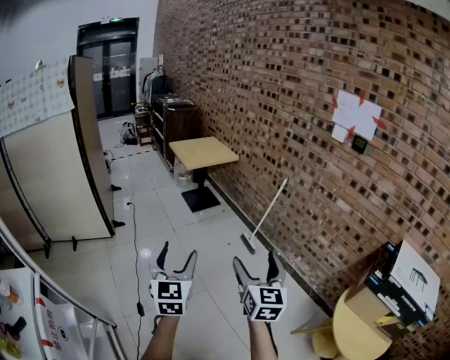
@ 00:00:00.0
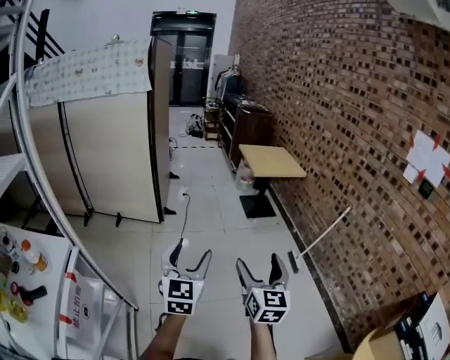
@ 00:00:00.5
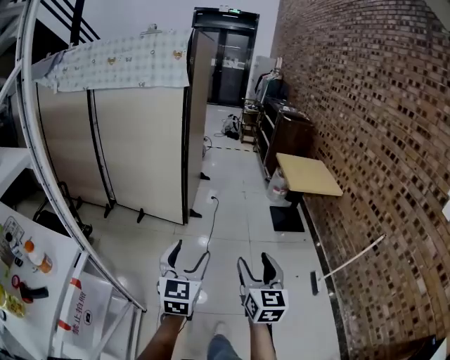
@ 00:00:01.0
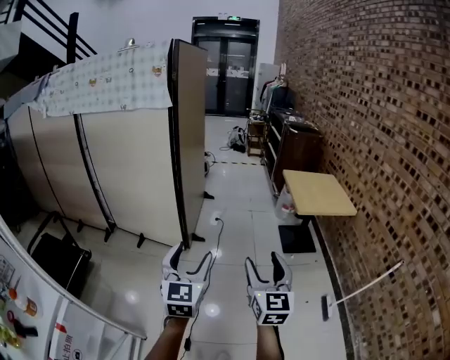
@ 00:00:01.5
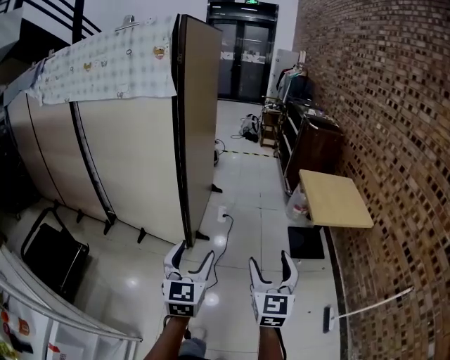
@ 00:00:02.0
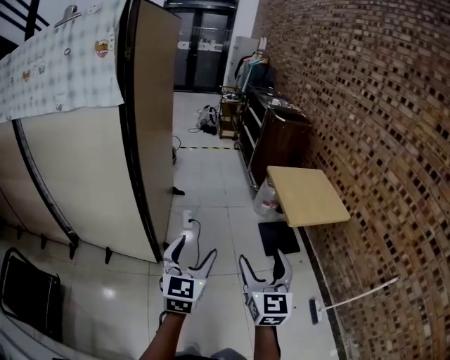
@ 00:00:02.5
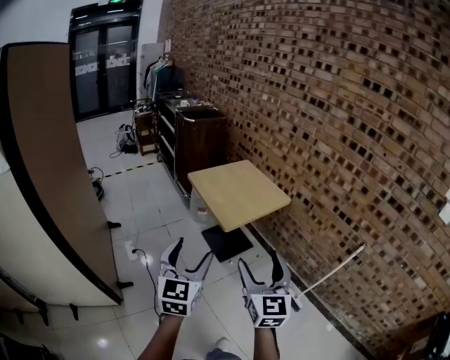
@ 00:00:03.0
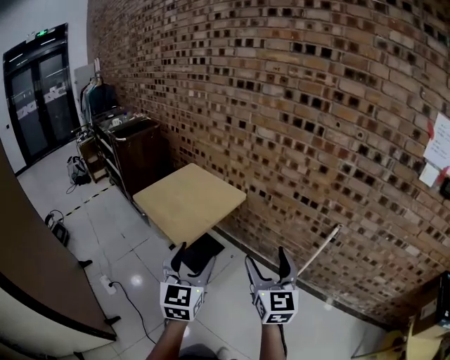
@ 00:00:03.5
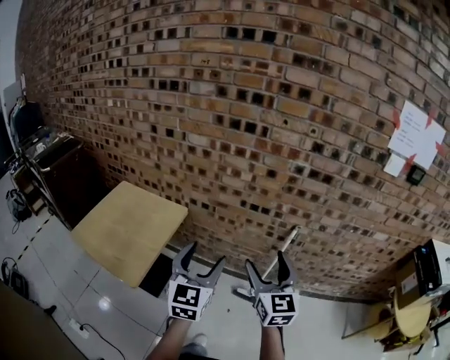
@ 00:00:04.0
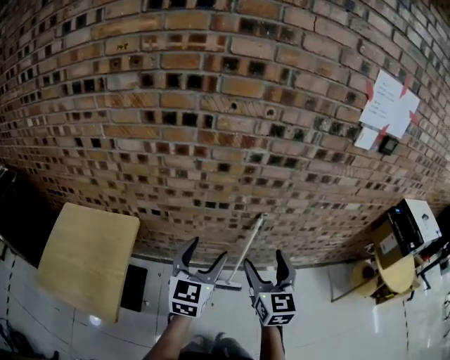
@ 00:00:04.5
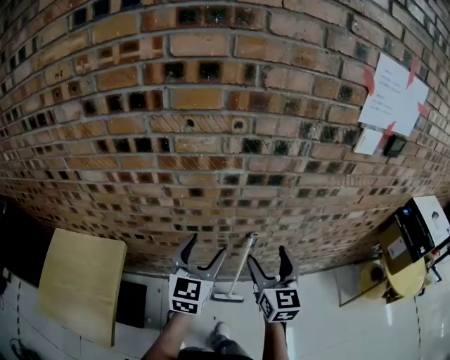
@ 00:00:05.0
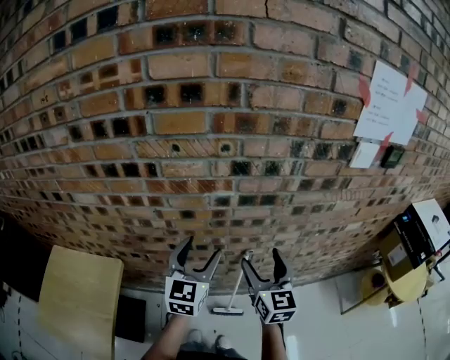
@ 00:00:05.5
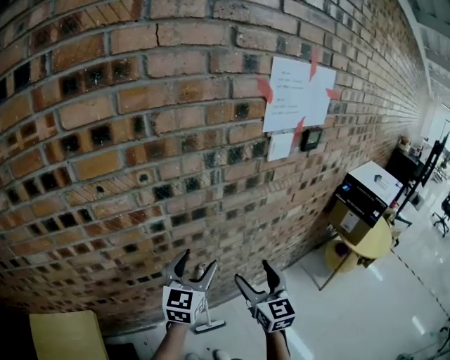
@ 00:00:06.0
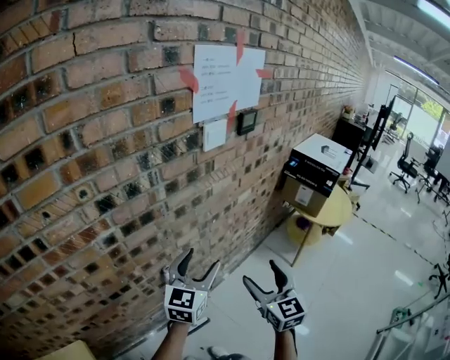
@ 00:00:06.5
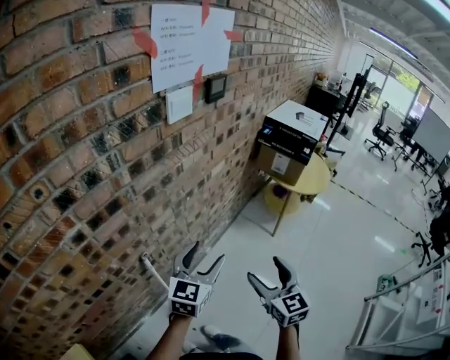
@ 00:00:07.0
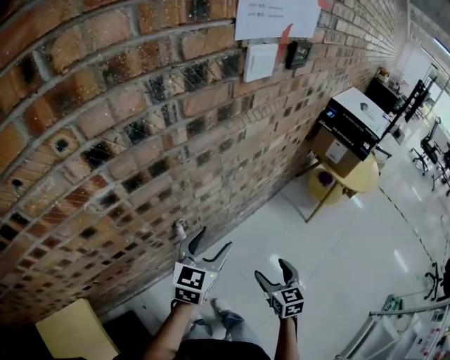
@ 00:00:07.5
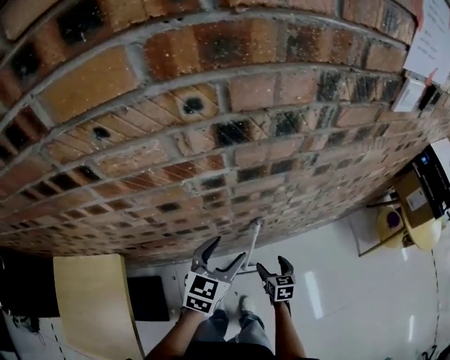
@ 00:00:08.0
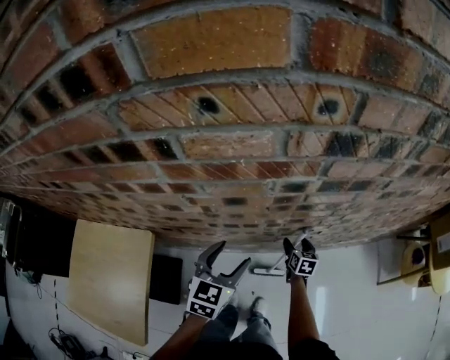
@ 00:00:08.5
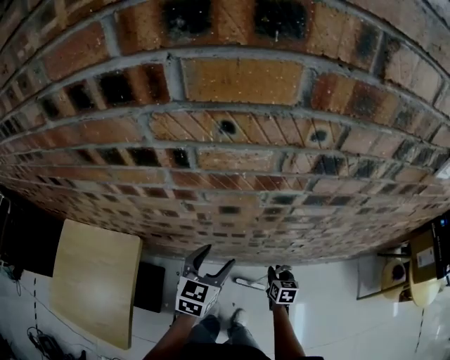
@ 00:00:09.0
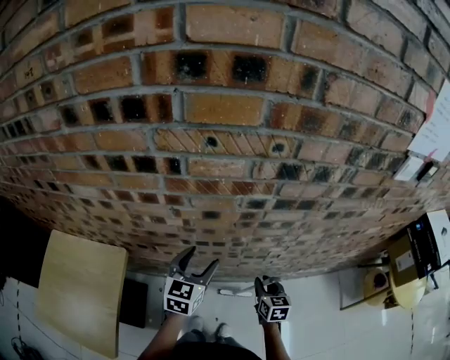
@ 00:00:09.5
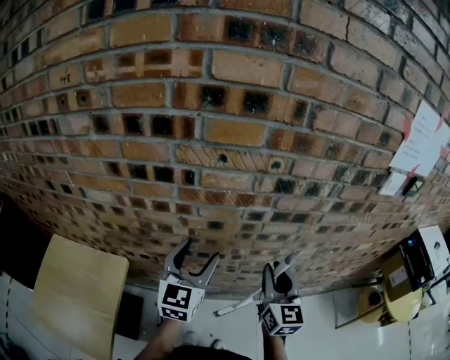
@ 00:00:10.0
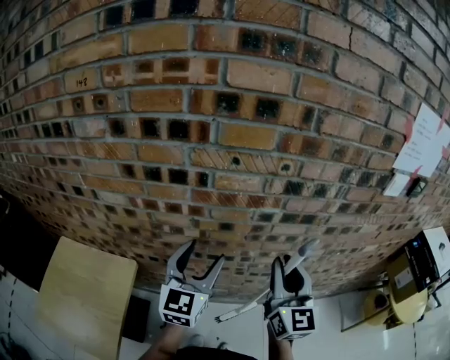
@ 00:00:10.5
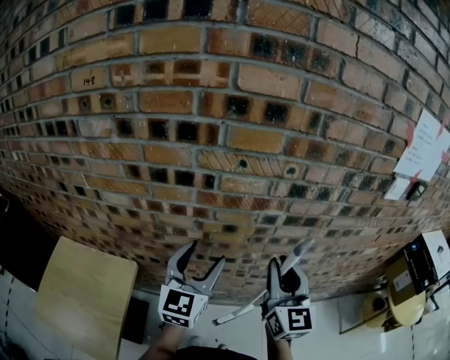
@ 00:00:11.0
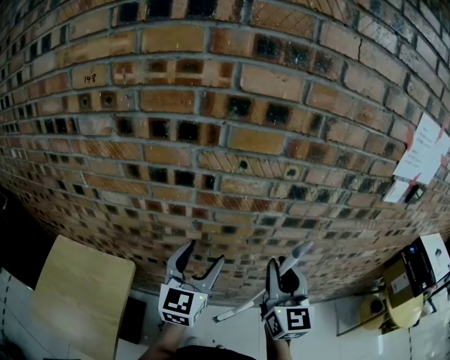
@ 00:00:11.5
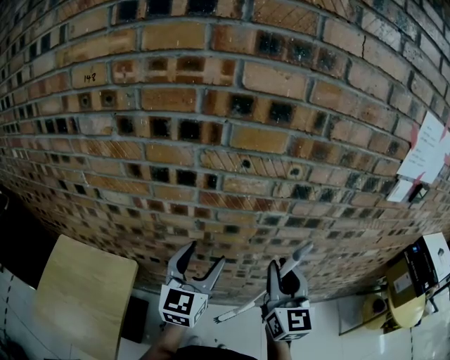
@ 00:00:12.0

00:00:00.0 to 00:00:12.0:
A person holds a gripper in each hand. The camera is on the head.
00:00:00.0 to 00:00:02.0: The pair of grippers is taken some 60 cm. The right gripper turns by about 30 degrees. The left gripper swivels some 30 degrees.
00:00:02.0 to 00:00:04.0: The pair of grippers is taken about 70 cm. The right gripper turns by roughly 70 degrees. Meanwhile the left gripper swivels about 80 degrees.
00:00:04.0 to 00:00:06.0: The left gripper moves roughly 40 cm, and changes its angle by about 40 degrees. Meanwhile the right gripper shifts by approximately 35 cm, and turns by roughly 30 degrees.
00:00:06.0 to 00:00:08.0: The right gripper travels downward by some 40 cm, and angles its fingers downward, by approximately 40 degrees. The left gripper goes roughly 20 cm downward, and rotates some 20 degrees.
00:00:08.0 to 00:00:10.0: The left gripper shifts roughly 25 cm upward and to the left, and swivels approximately 30 degrees. The right gripper moves upward, about 40 cm, tips its fingers upward by some 40 degrees, and closes its fingers.
00:00:10.0 to 00:00:12.0: The right gripper goes roughly 5 cm upward.

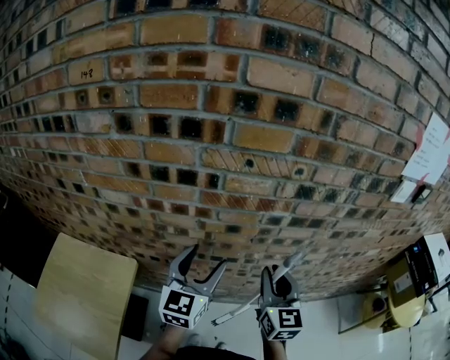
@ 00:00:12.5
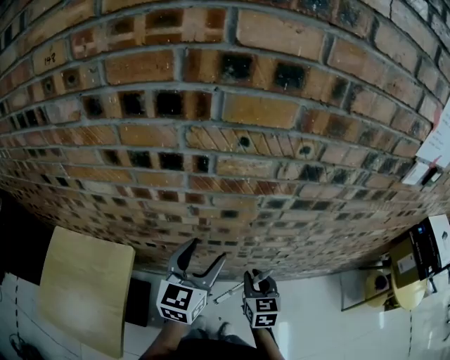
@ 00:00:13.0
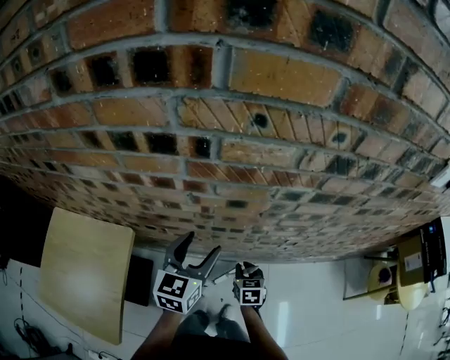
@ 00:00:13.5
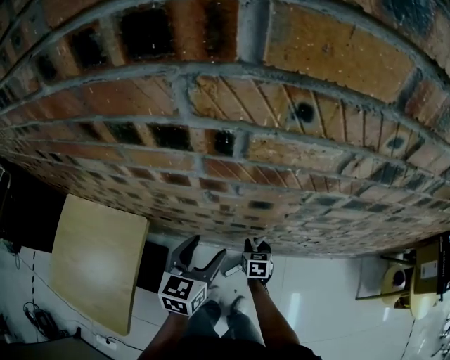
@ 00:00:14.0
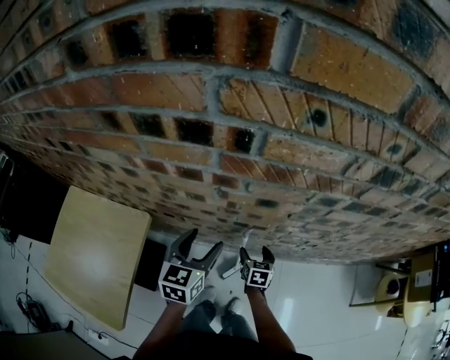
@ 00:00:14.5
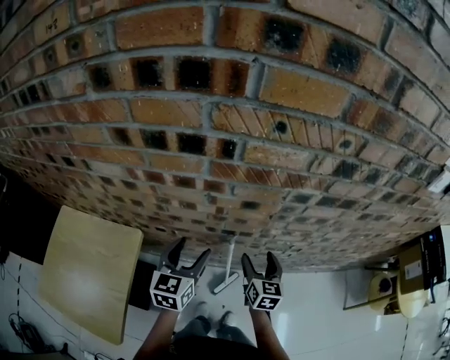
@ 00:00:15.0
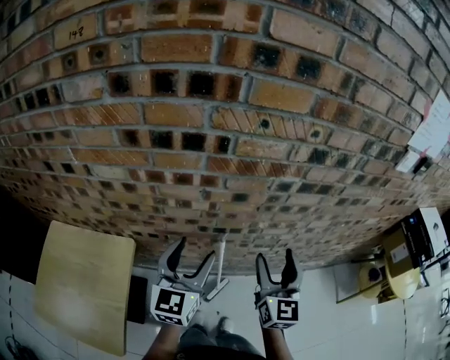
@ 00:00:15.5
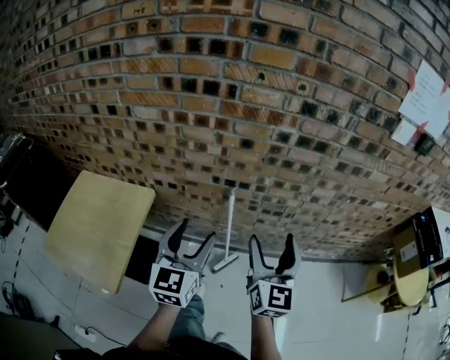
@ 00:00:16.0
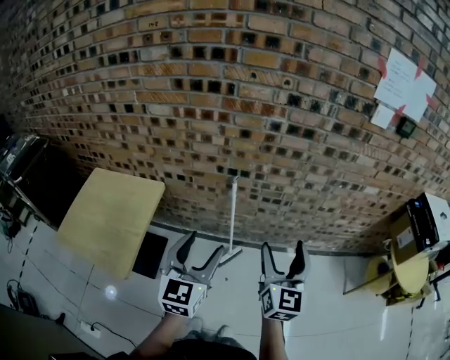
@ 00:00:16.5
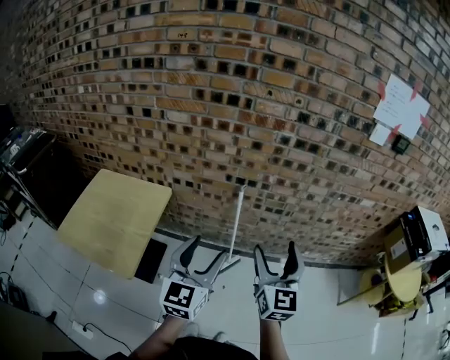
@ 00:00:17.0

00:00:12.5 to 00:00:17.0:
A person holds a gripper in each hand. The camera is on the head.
00:00:12.5 to 00:00:14.5: The right gripper shifts some 40 cm downward, tilts its fingers about 40 degrees downward, and opens, while the left gripper shifts some 20 cm downward, and swivels some 30 degrees.
00:00:14.5 to 00:00:17.0: The pair of grippers is taken backward, some 40 cm. The right gripper travels upward by roughly 40 cm, and angles its fingers upward, by roughly 50 degrees. The left gripper swivels about 30 degrees.

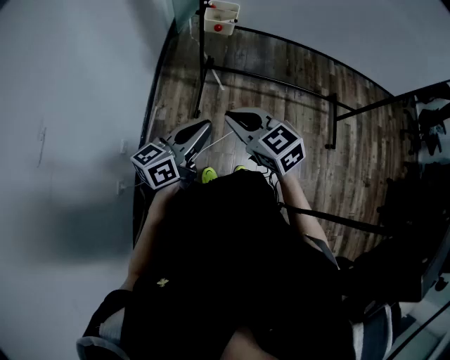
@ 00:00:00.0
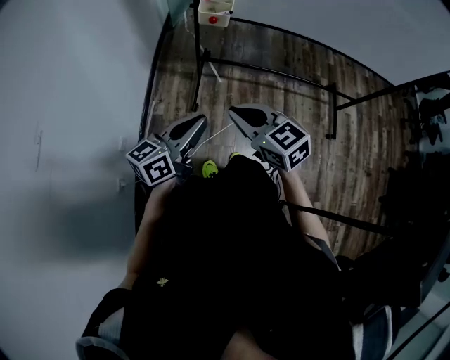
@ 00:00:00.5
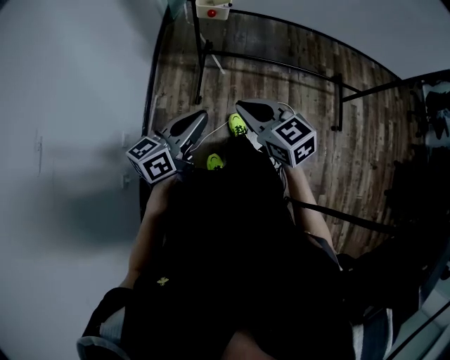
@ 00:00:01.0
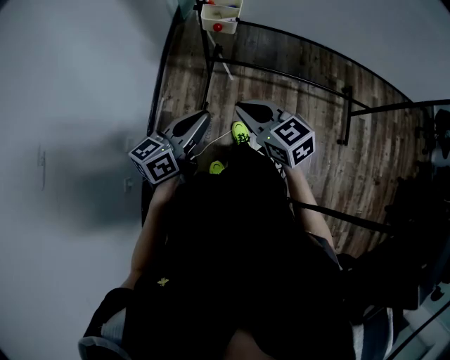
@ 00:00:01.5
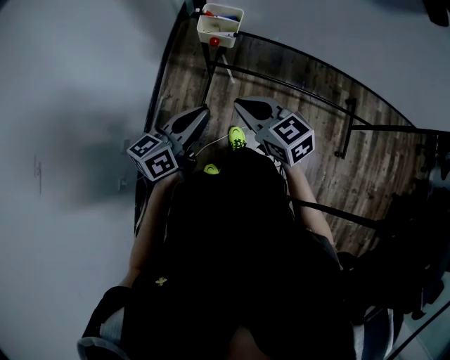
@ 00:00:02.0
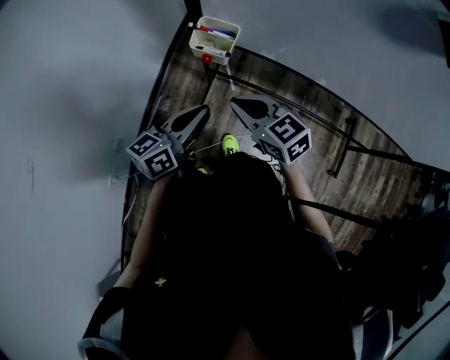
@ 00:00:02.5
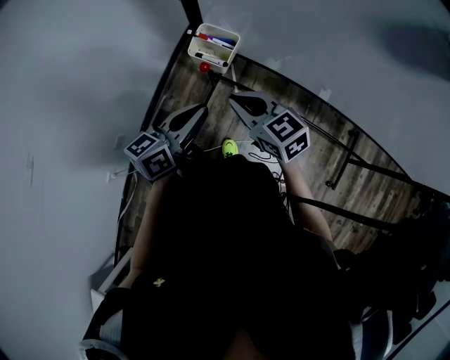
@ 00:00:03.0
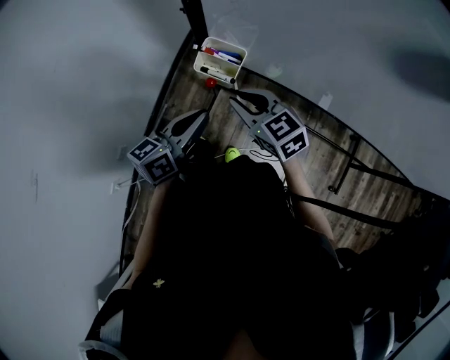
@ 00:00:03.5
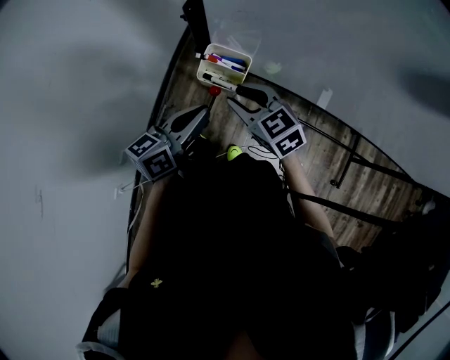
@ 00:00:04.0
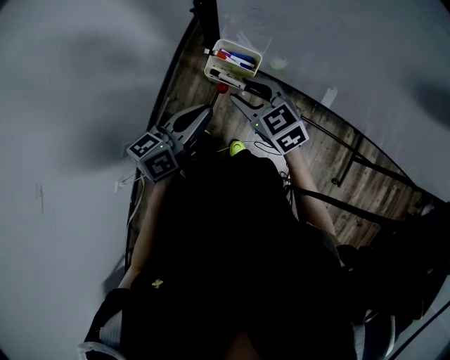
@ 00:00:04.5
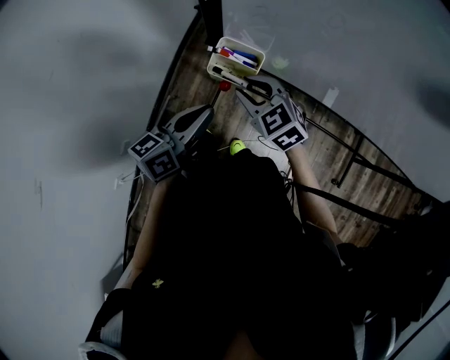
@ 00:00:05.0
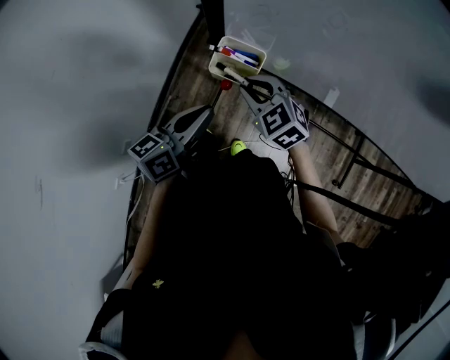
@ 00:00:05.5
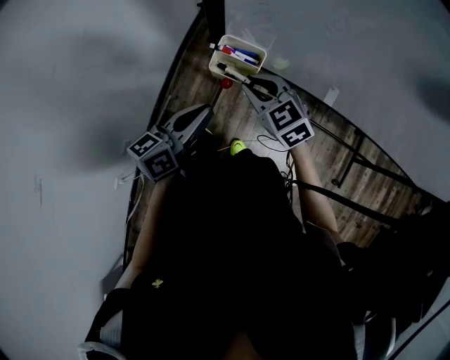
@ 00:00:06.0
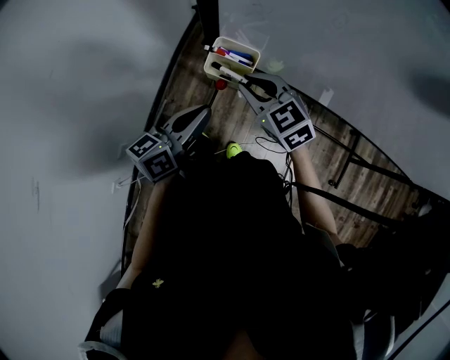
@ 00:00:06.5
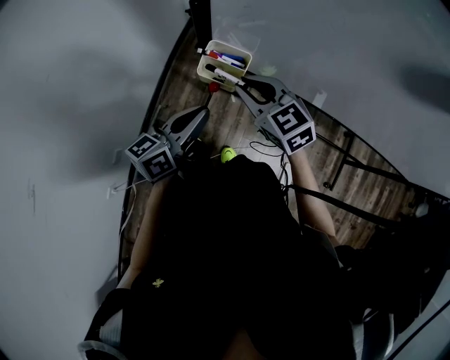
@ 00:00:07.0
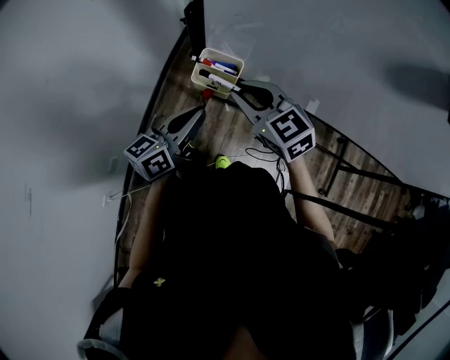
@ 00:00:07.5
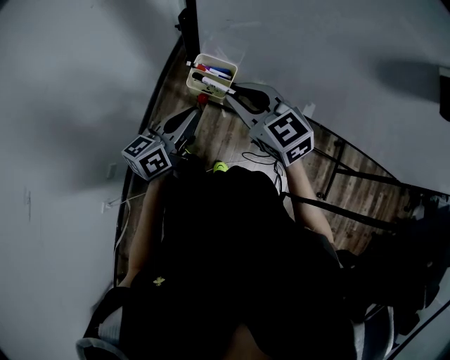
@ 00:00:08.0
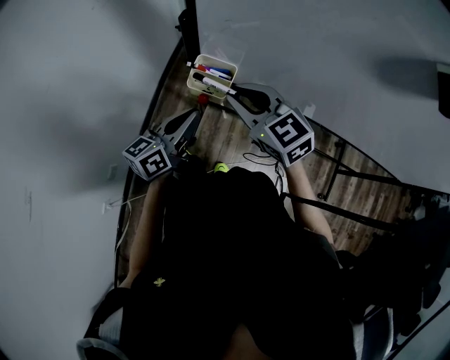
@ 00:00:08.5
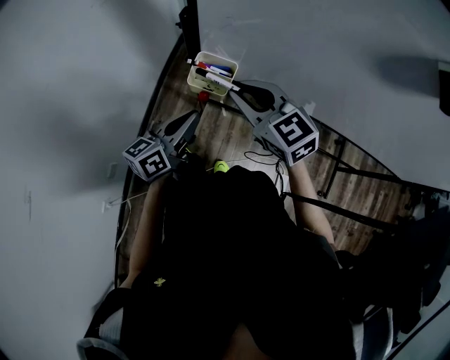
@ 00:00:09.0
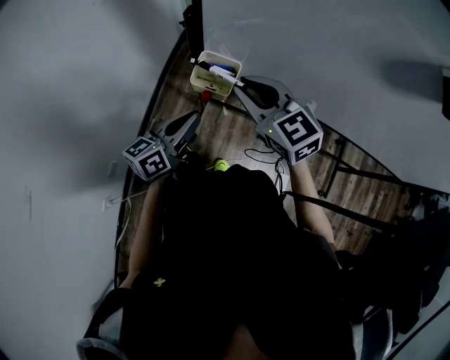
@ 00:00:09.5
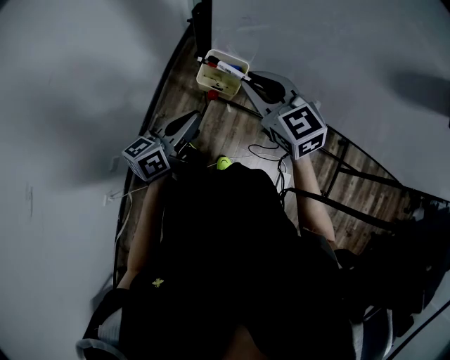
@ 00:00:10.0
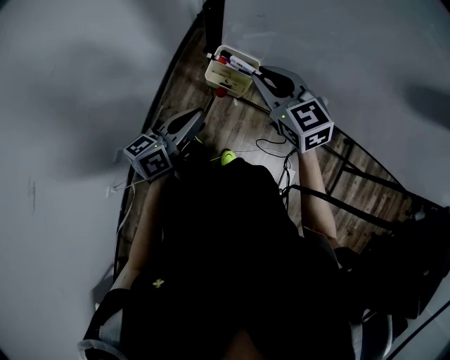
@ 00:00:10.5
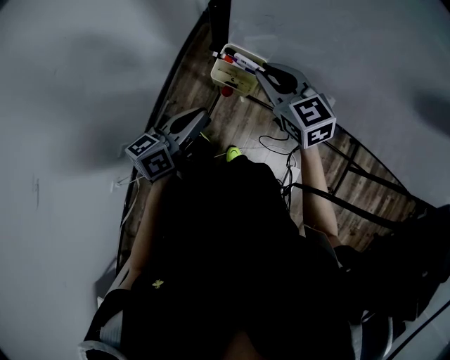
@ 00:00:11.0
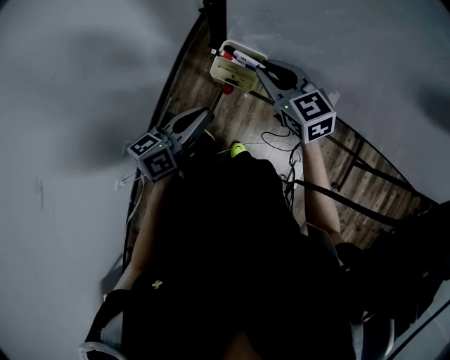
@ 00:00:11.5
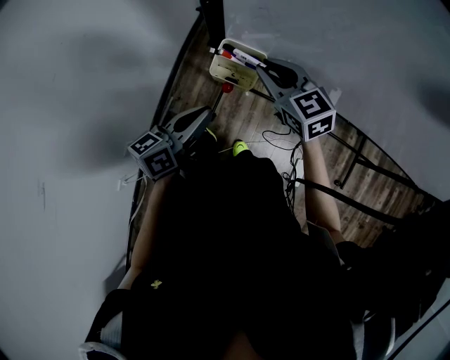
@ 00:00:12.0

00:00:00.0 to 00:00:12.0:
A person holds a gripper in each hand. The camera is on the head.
00:00:00.0 to 00:00:02.0: The two grippers go roughly 15 cm forward.
00:00:02.0 to 00:00:04.0: Both grippers move forward, roughly 15 cm. The right gripper opens up.
00:00:04.0 to 00:00:06.0: The right gripper closes.
00:00:06.0 to 00:00:08.0: The right gripper shifts about 10 cm upward.
00:00:08.0 to 00:00:10.0: The grippers make only small movements.
00:00:10.0 to 00:00:12.0: The right gripper is displaced downward by approximately 5 cm.
